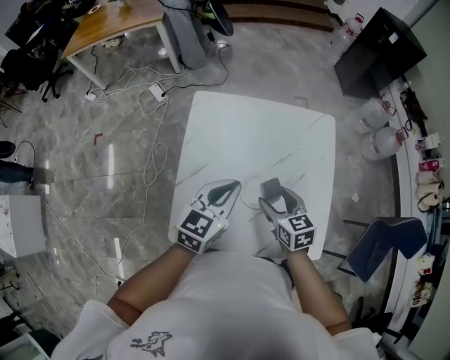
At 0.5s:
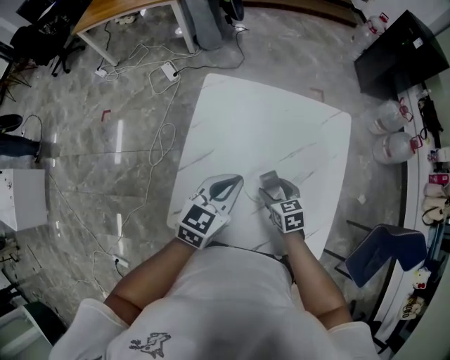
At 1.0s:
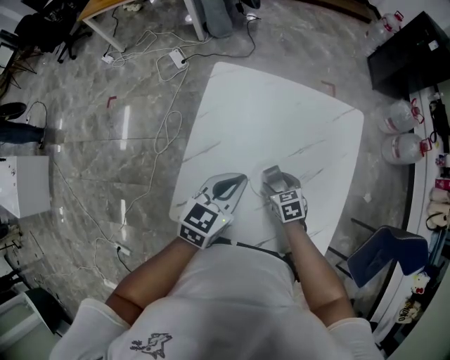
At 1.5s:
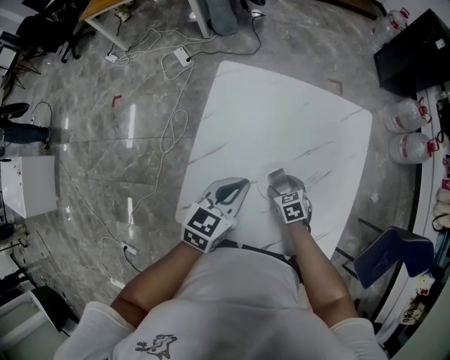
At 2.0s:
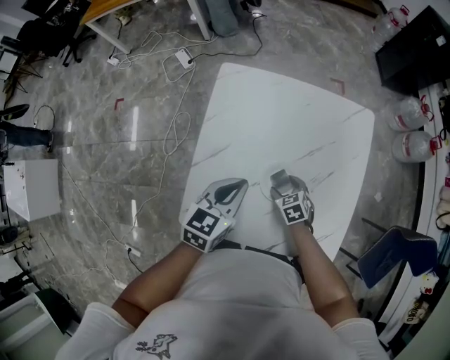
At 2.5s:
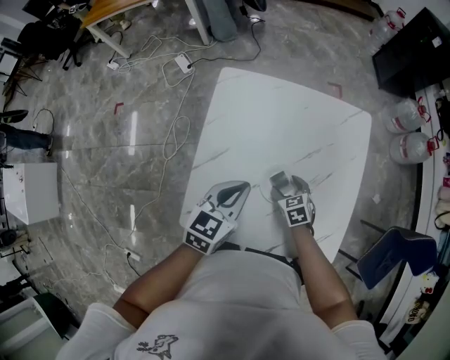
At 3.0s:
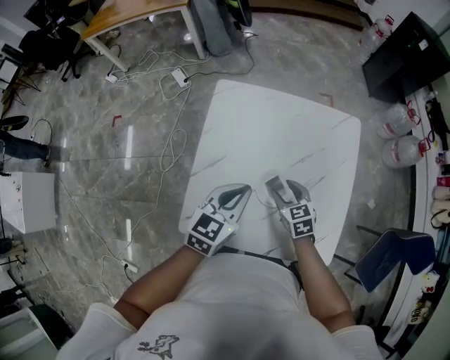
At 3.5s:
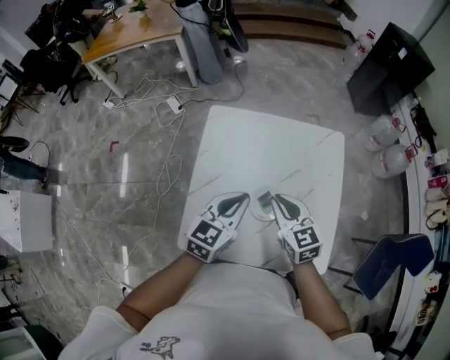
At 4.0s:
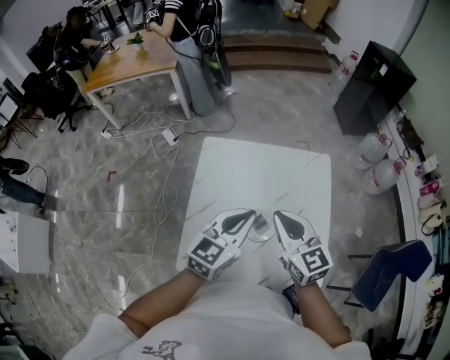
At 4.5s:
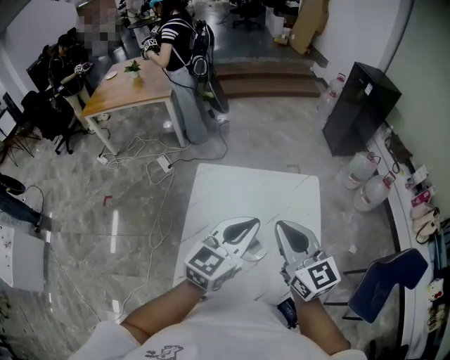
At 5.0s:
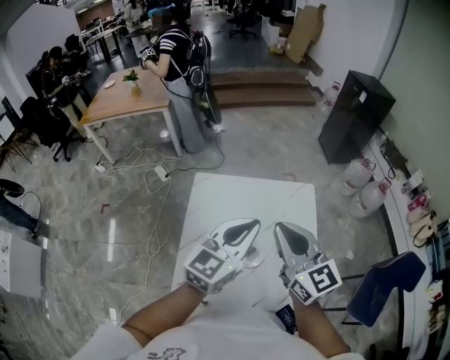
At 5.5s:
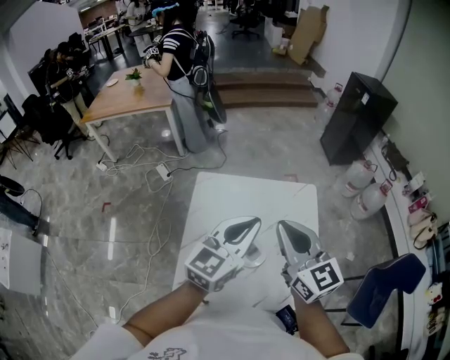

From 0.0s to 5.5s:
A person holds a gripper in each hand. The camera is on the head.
From 0.0s to 2.0s: The left gripper moves downward, some 10 cm, while the right gripper moves downward, some 20 cm, and swivels roughly 30 degrees.
From 2.0s to 3.5s: The left gripper goes about 10 cm upward. The right gripper moves upward, about 30 cm, points its fingers about 40 degrees further upward, and closes its fingers.
From 3.5s to 5.5s: The grippers both shift upward by some 25 cm. The right gripper turns by approximately 20 degrees.

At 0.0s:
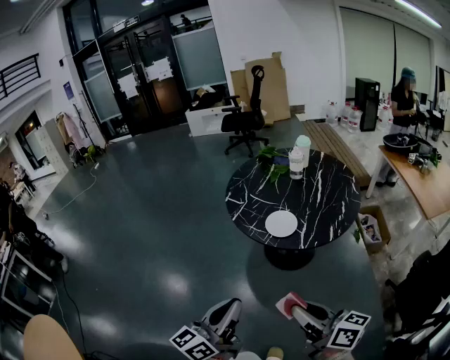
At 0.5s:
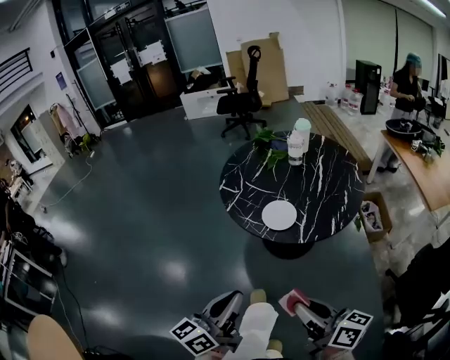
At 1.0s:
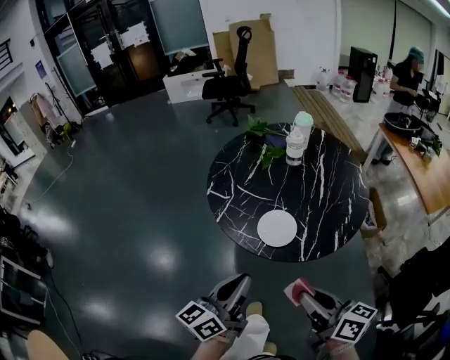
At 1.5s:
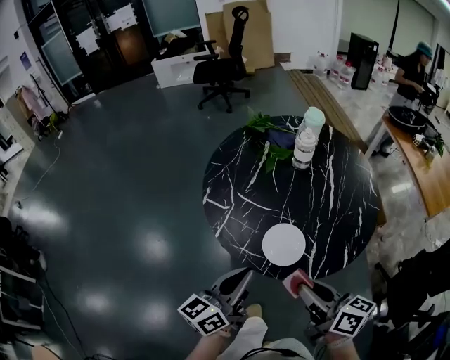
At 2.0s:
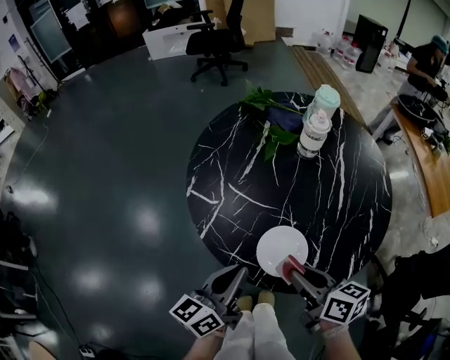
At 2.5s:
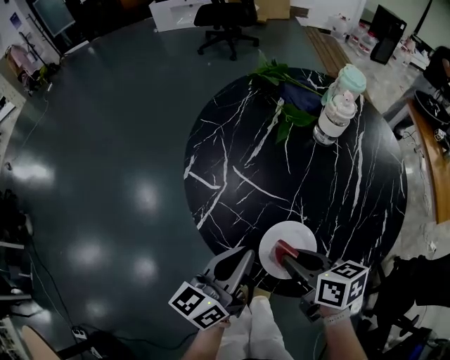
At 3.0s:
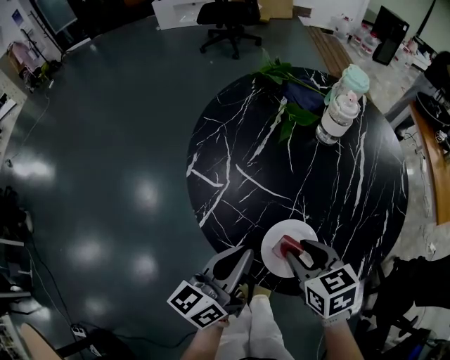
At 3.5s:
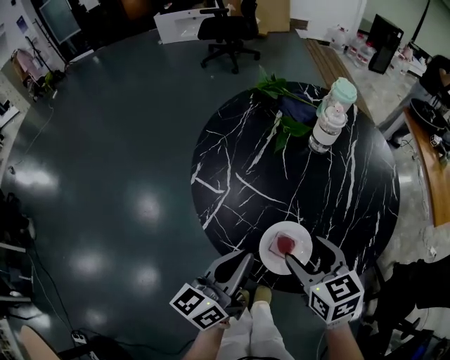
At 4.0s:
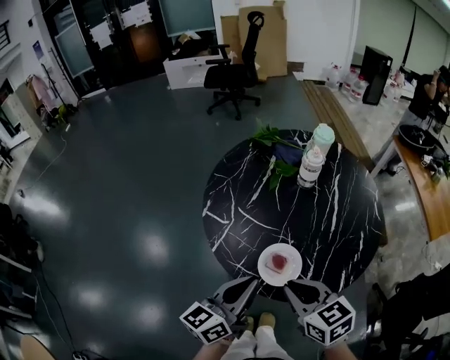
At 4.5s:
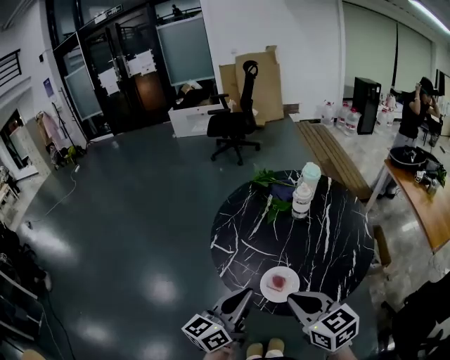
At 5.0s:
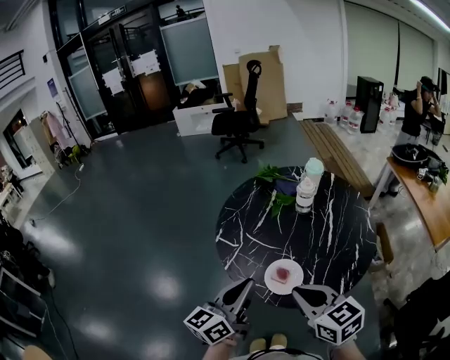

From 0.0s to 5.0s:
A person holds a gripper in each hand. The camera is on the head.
From 0.0s to 2.5s: The pair of grippers is taken forward, approximately 40 cm. Both grippers move downward, approximately 25 cm. The right gripper tilts its fingers some 40 degrees downward.
From 2.5s to 5.0s: The grippers both shift upward and backward by roughly 25 cm. The right gripper turns by roughly 40 degrees, and opens, then closes again.

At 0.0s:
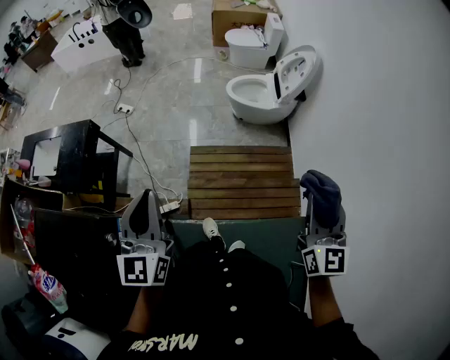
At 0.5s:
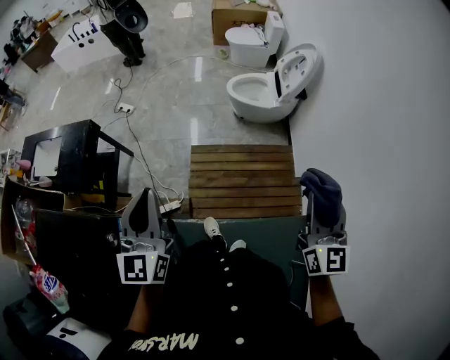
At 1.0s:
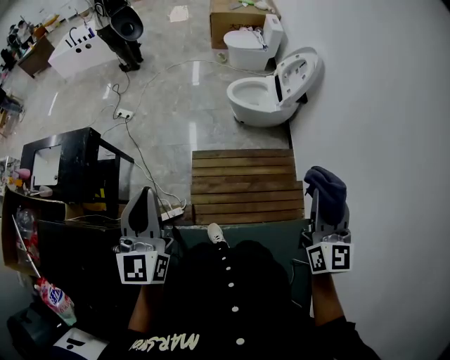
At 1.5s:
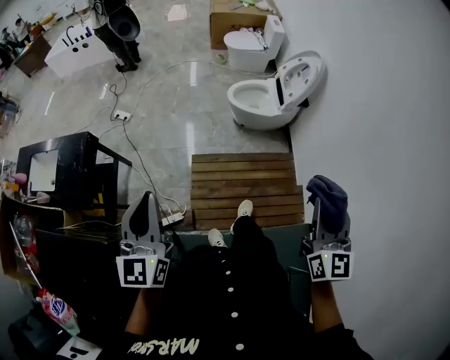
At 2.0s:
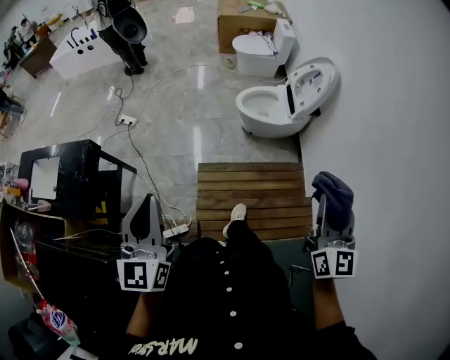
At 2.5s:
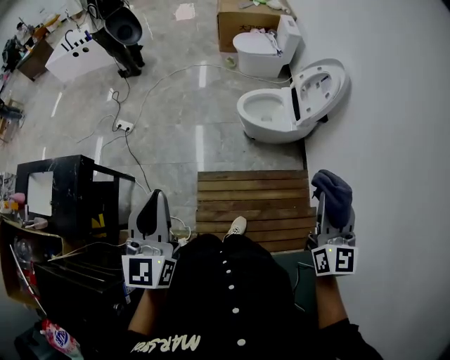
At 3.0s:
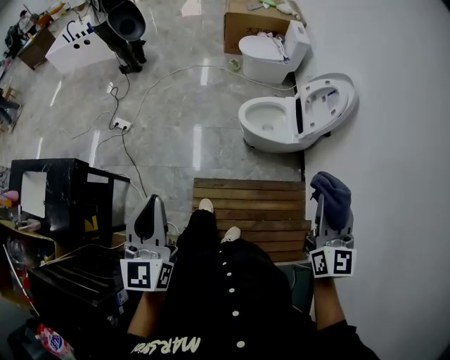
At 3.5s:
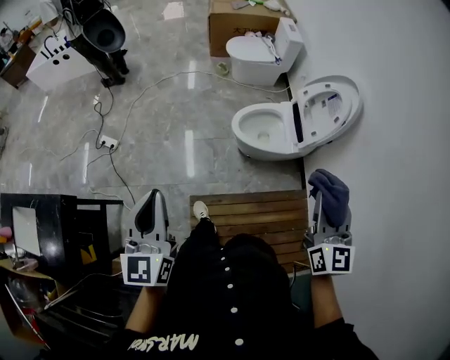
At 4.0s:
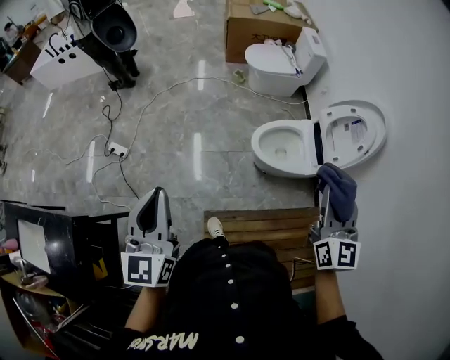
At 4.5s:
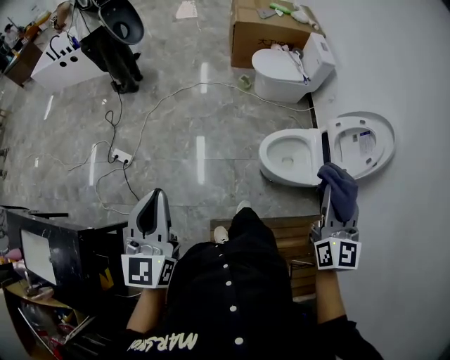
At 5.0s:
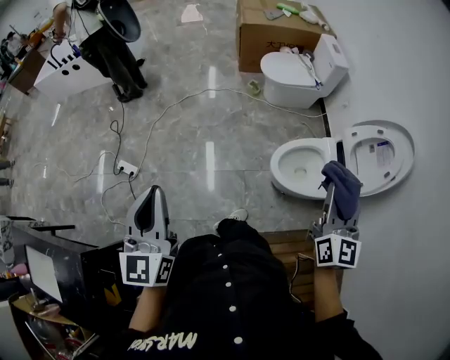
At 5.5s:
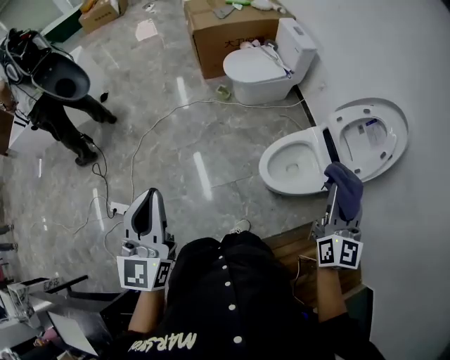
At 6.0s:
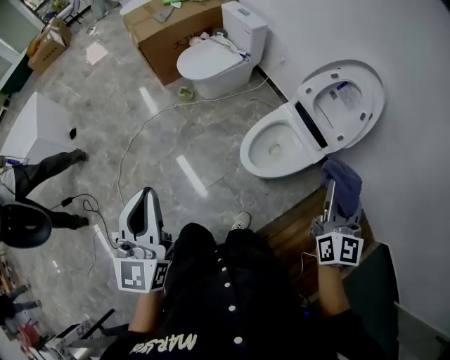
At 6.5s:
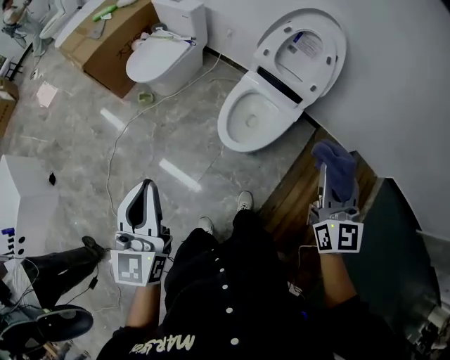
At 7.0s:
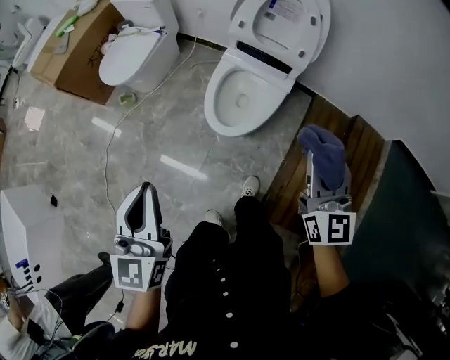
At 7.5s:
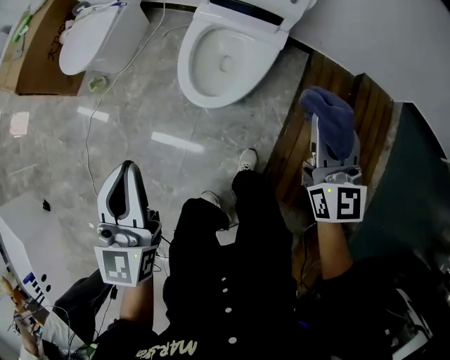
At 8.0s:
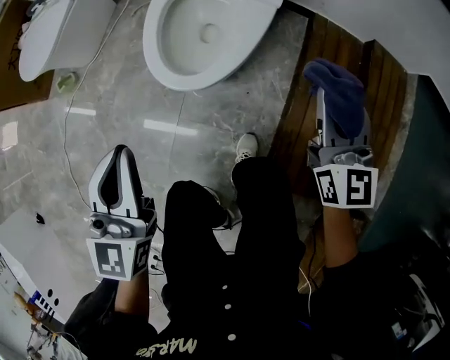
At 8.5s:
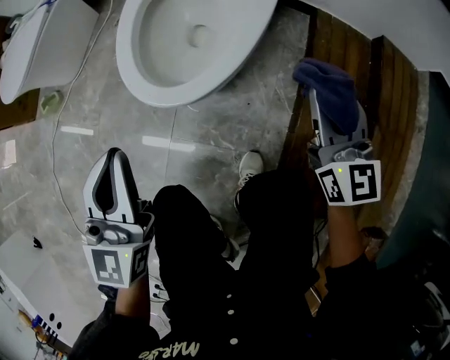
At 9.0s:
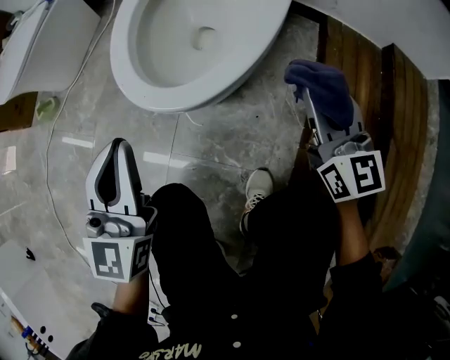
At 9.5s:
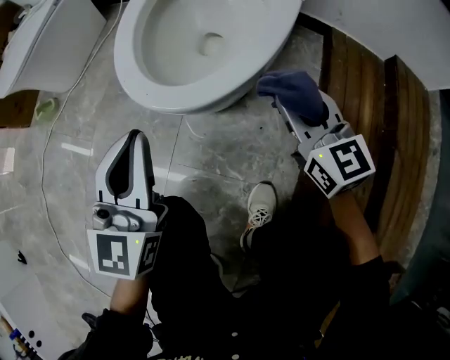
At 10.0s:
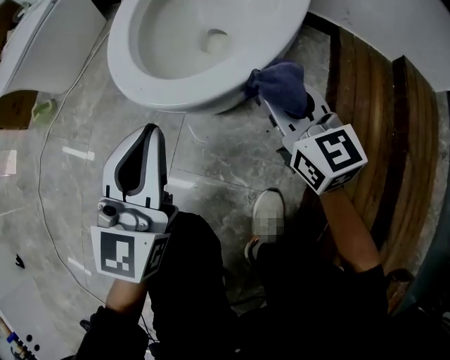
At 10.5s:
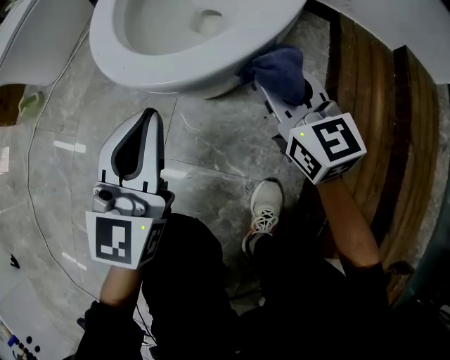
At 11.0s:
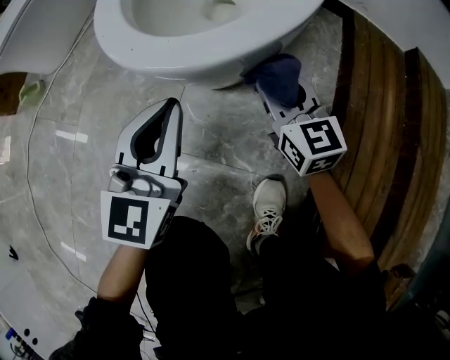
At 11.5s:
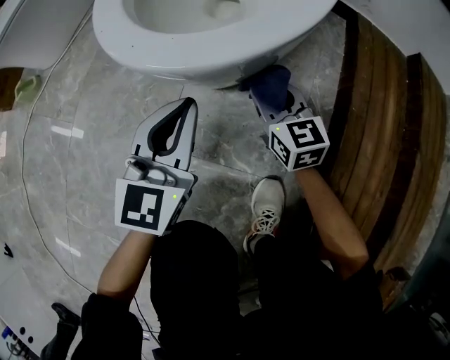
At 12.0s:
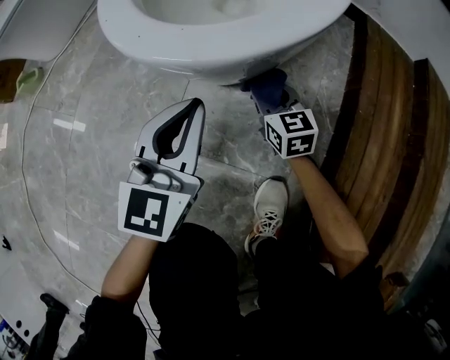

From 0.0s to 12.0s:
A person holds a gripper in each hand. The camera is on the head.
From 0.0s to 2.0s: The right gripper is displaced forward by approximately 15 cm; the left gripper shifts approximately 15 cm forward and to the left.
From 2.0s to 4.0s: Both grippers are carried forward, some 50 cm.
From 4.0s to 6.0s: The right gripper moves some 20 cm, and swivels some 30 degrees. The left gripper changes place by some 40 cm, and swivels about 30 degrees.
From 6.0s to 8.0s: Both grippers move downward, about 40 cm. The left gripper rotates about 50 degrees. The right gripper swivels about 30 degrees.
From 8.0s to 10.0s: The two grippers go some 30 cm downward. The right gripper changes its angle by approximately 20 degrees.
From 10.0s to 12.0s: The left gripper moves downward, roughly 15 cm; the right gripper goes about 25 cm downward.

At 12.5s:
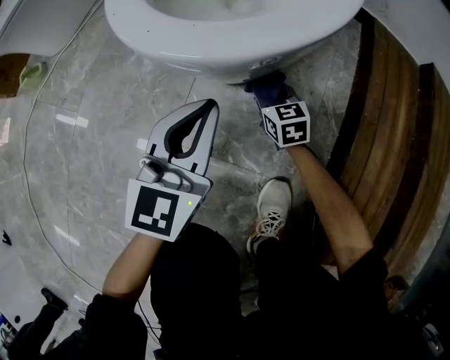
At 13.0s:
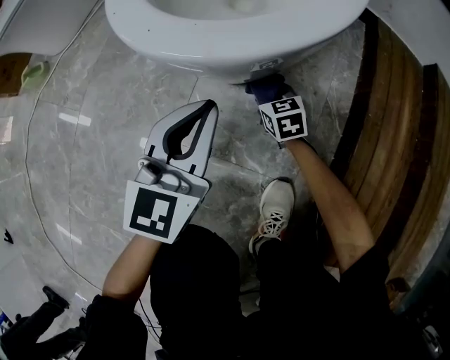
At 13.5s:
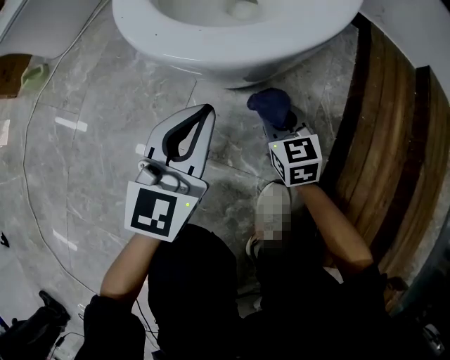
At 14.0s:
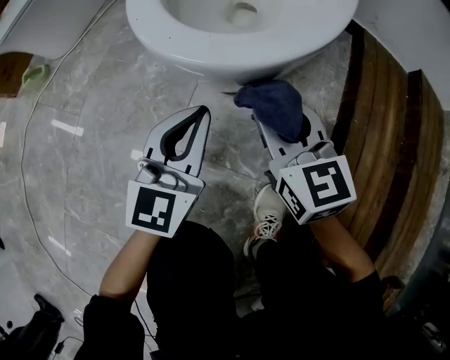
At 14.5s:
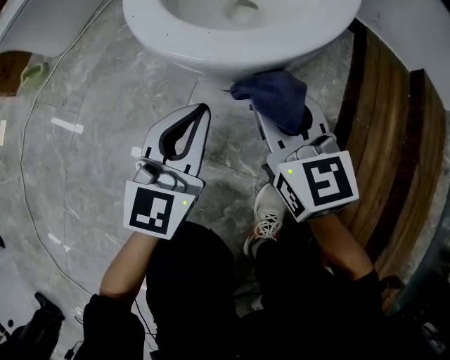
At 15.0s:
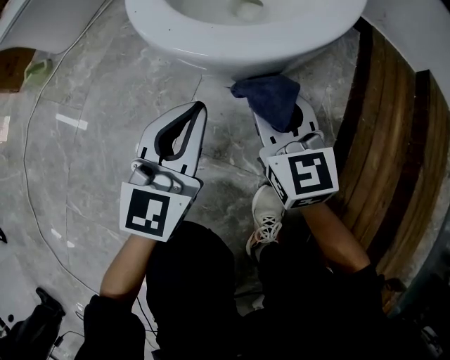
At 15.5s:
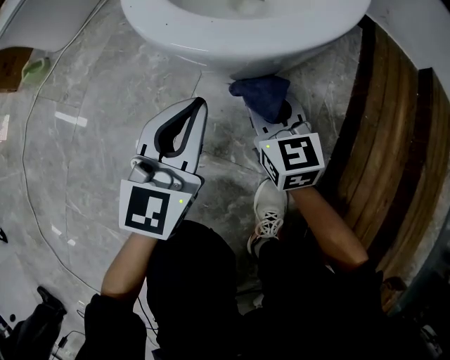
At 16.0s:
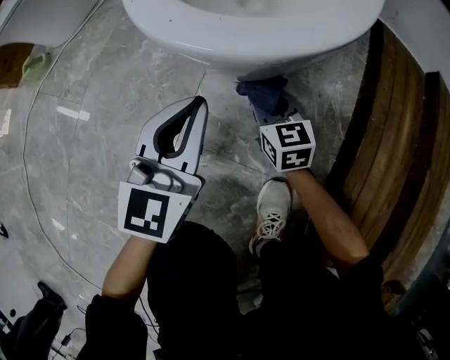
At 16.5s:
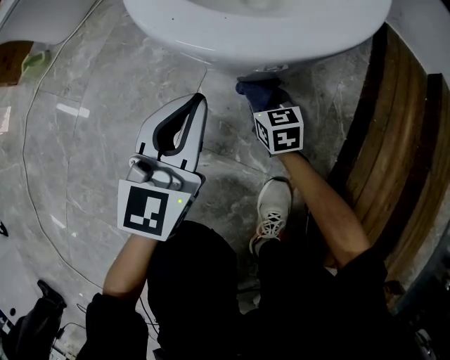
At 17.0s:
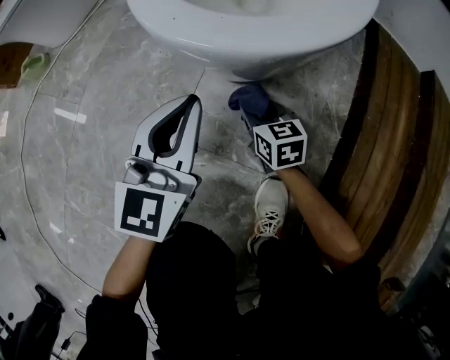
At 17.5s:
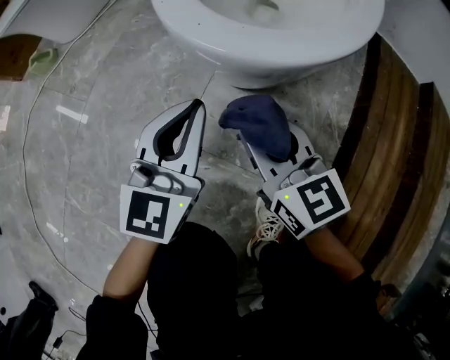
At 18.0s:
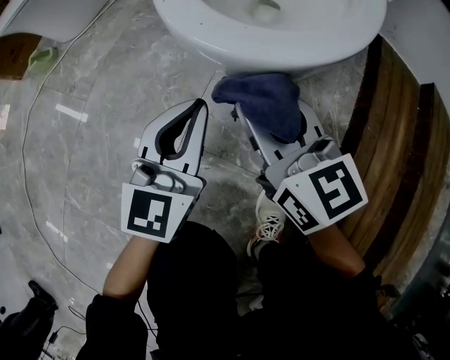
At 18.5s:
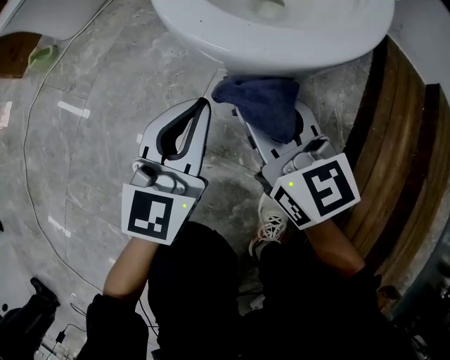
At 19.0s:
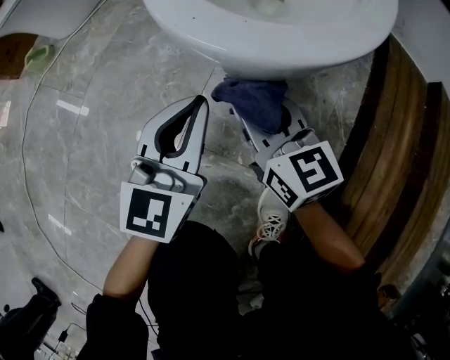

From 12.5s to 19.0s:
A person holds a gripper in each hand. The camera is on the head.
From 12.5s to 14.5s: The right gripper goes roughly 25 cm upward, and turns by about 20 degrees.
From 14.5s to 17.0s: The right gripper heads downward, covering approximately 25 cm, and rotates approximately 30 degrees.
From 17.0s to 19.0s: The right gripper heads upward, covering roughly 15 cm, and swivels approximately 20 degrees.
